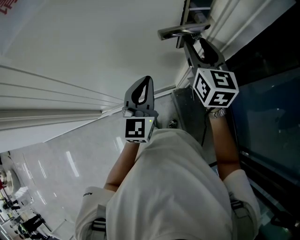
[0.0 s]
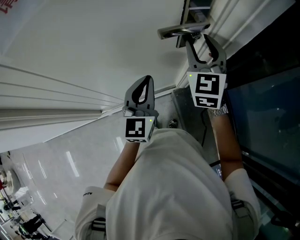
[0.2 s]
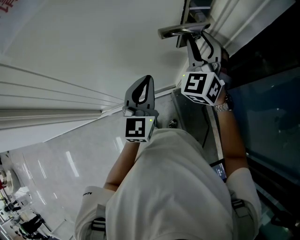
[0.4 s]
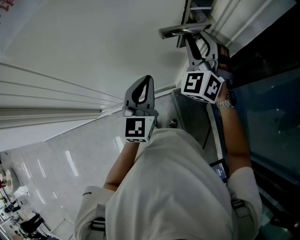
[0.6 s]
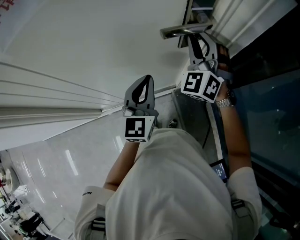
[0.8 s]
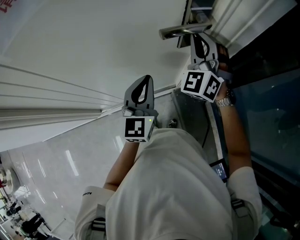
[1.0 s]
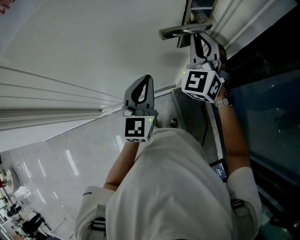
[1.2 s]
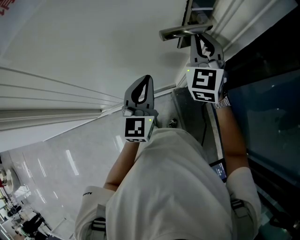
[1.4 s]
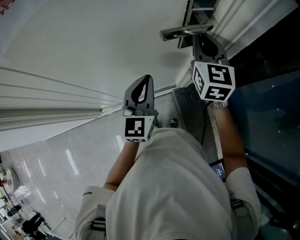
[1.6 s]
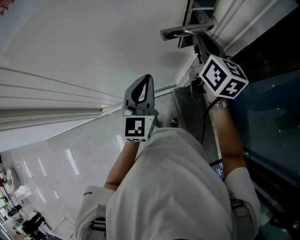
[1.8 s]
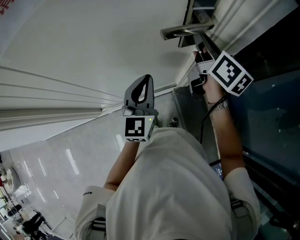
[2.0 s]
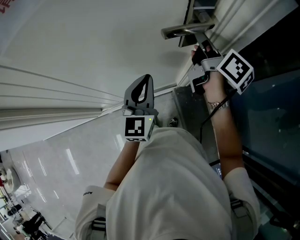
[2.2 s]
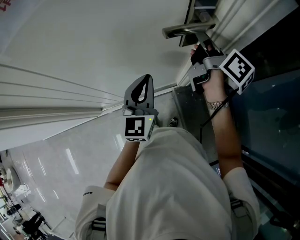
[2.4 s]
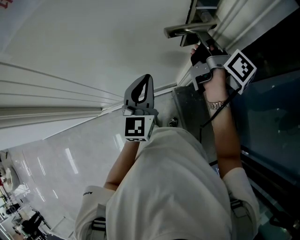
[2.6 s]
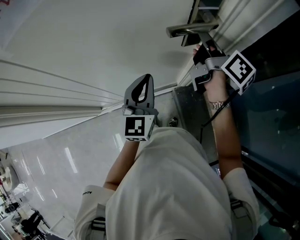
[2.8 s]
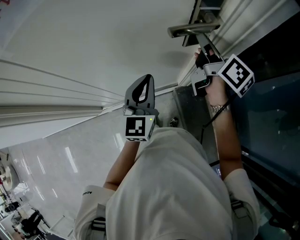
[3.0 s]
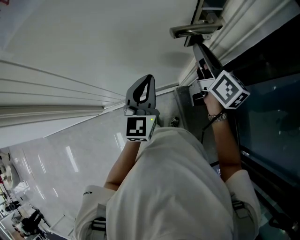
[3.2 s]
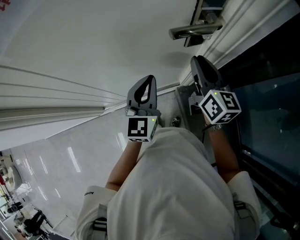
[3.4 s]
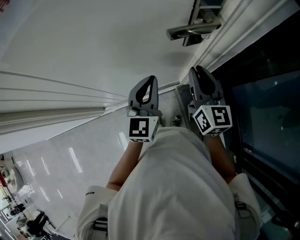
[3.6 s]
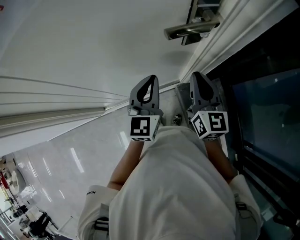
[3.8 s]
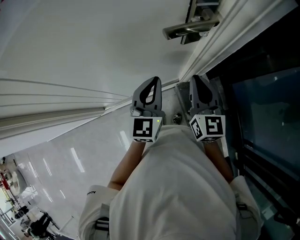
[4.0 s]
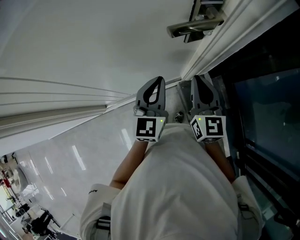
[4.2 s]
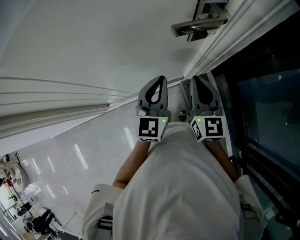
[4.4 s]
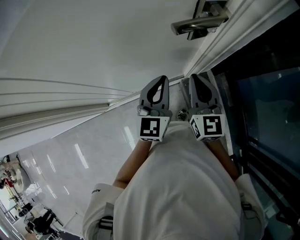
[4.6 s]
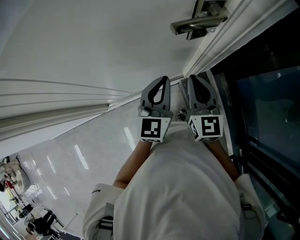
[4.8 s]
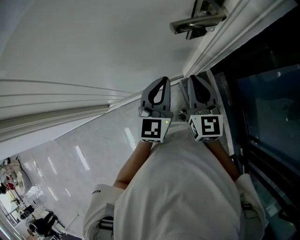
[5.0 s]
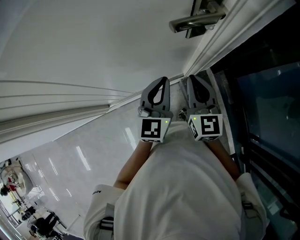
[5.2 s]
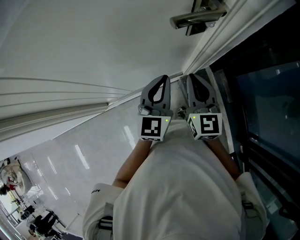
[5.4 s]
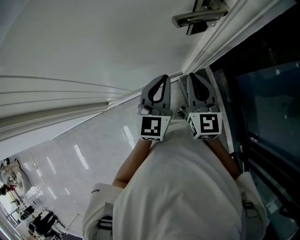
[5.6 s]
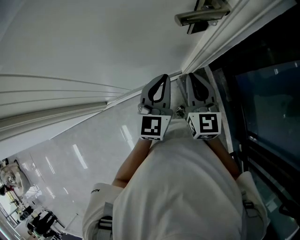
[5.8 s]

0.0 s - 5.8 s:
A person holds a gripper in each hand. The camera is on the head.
0.0 s - 1.4 s: The right gripper swivels approximately 30 degrees, and closes its fingers.
1.4 s - 2.8 s: The right gripper rotates around the line of its fingers by roughly 90 degrees, clockwise from behind.
2.8 s - 4.4 s: The right gripper travels backward and downward by some 15 cm, and rotates around the line of its fingers by roughly 50 degrees, counterclockwise from behind.
4.4 s - 5.8 s: There are only small adjustments of the grippers.

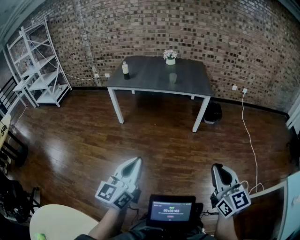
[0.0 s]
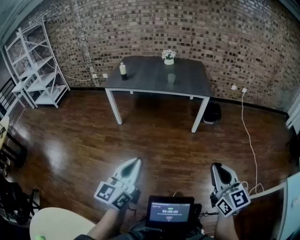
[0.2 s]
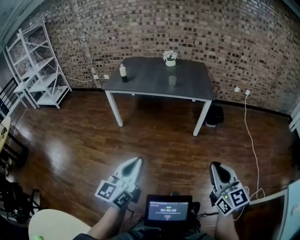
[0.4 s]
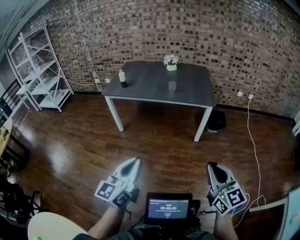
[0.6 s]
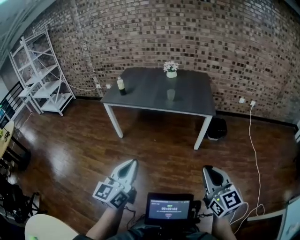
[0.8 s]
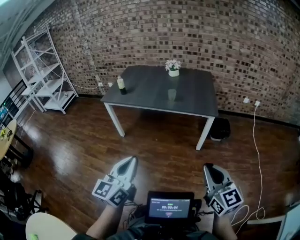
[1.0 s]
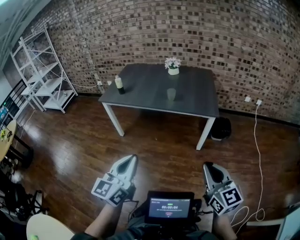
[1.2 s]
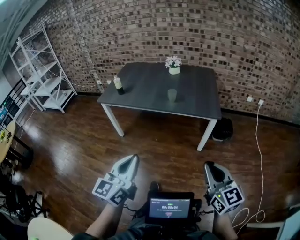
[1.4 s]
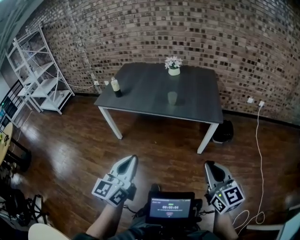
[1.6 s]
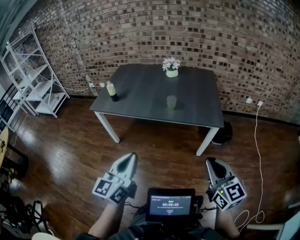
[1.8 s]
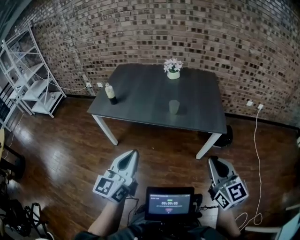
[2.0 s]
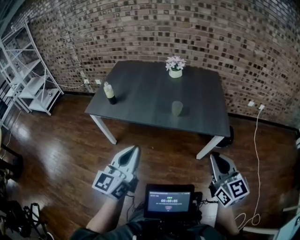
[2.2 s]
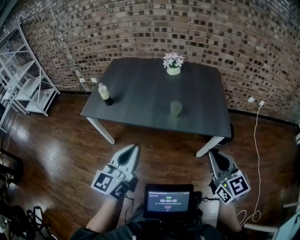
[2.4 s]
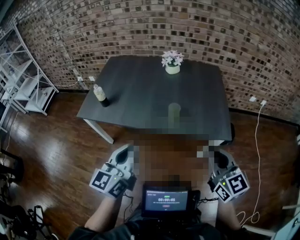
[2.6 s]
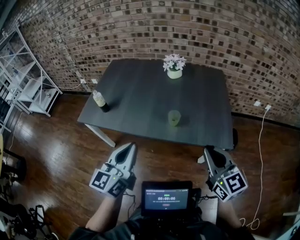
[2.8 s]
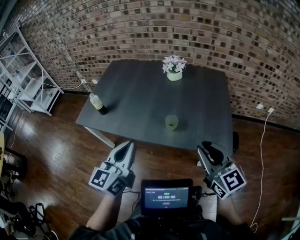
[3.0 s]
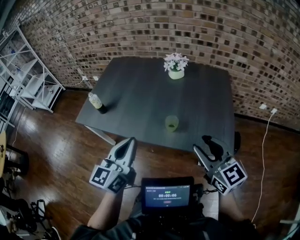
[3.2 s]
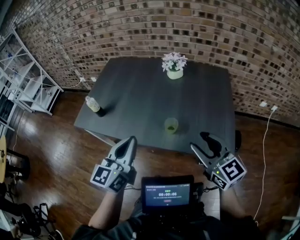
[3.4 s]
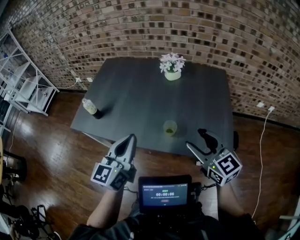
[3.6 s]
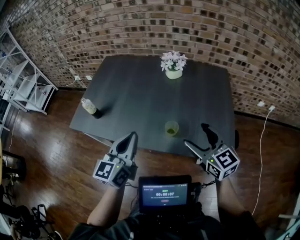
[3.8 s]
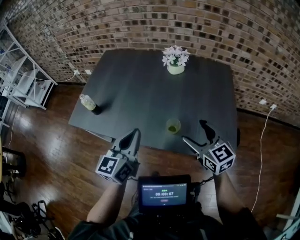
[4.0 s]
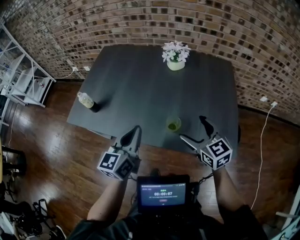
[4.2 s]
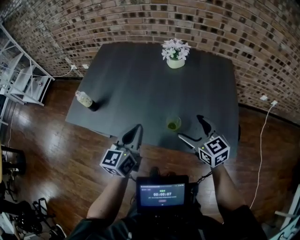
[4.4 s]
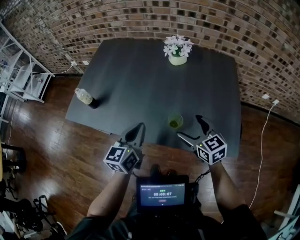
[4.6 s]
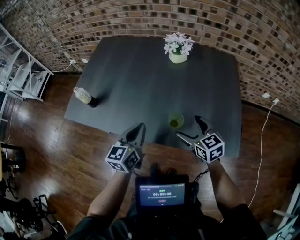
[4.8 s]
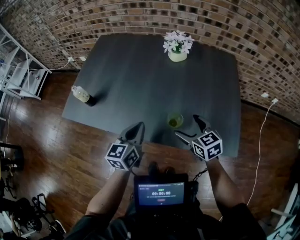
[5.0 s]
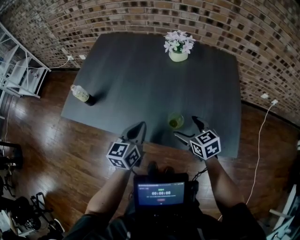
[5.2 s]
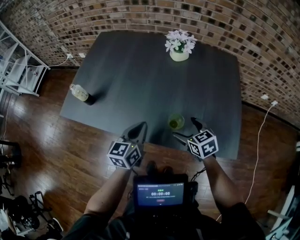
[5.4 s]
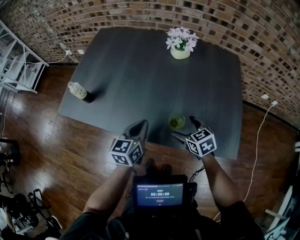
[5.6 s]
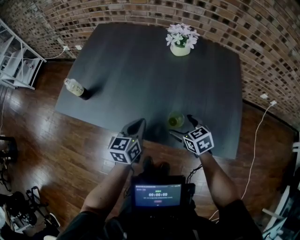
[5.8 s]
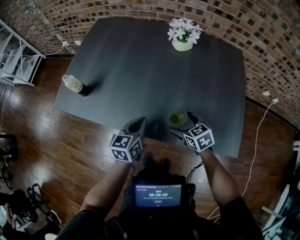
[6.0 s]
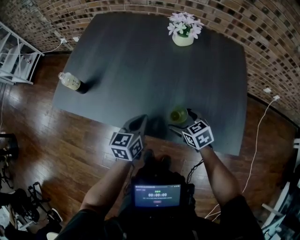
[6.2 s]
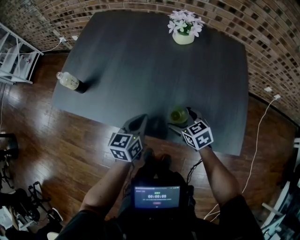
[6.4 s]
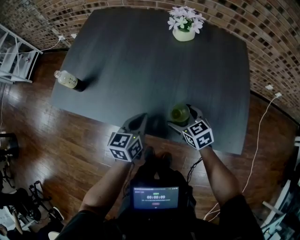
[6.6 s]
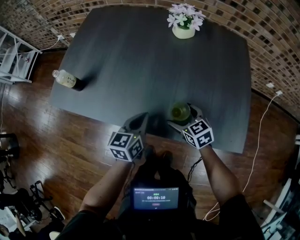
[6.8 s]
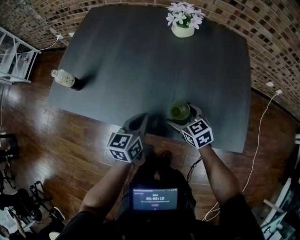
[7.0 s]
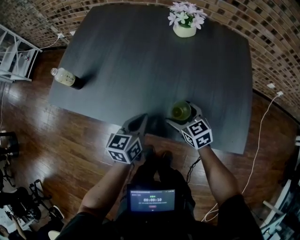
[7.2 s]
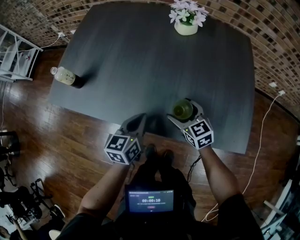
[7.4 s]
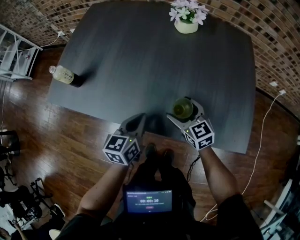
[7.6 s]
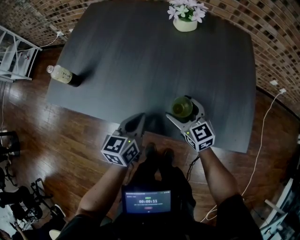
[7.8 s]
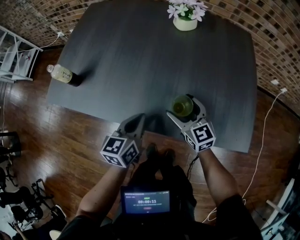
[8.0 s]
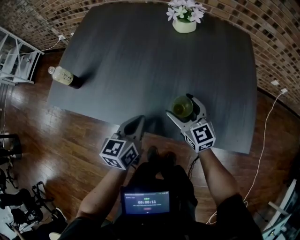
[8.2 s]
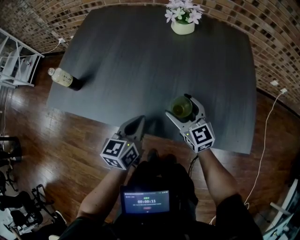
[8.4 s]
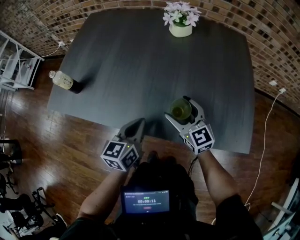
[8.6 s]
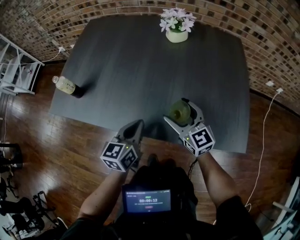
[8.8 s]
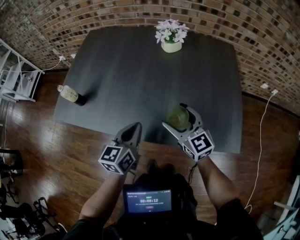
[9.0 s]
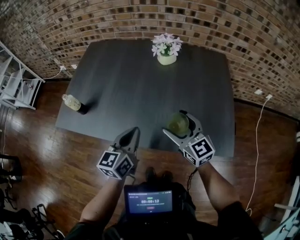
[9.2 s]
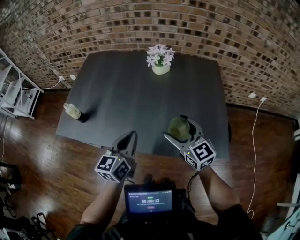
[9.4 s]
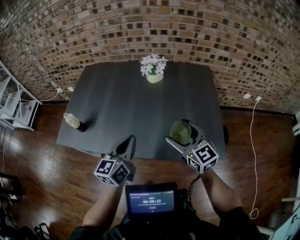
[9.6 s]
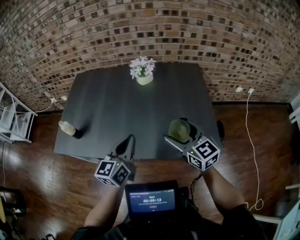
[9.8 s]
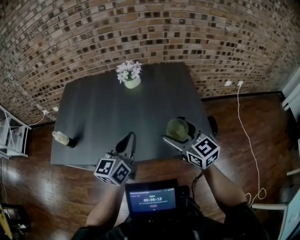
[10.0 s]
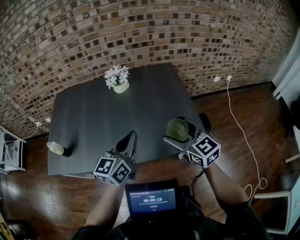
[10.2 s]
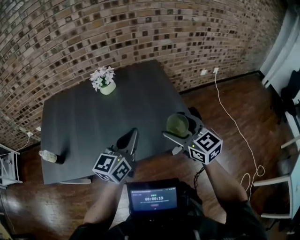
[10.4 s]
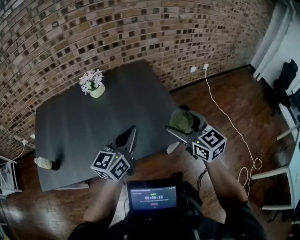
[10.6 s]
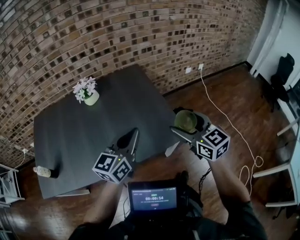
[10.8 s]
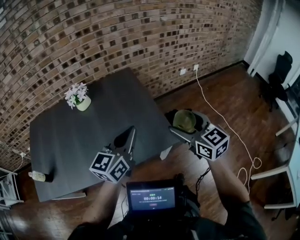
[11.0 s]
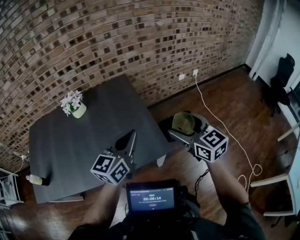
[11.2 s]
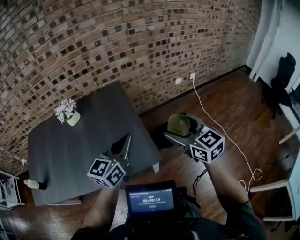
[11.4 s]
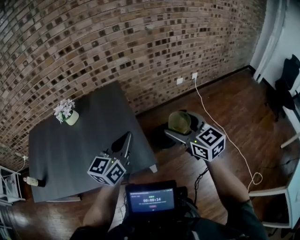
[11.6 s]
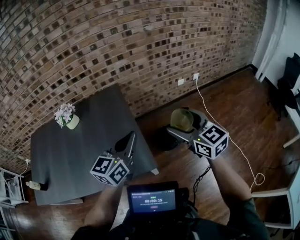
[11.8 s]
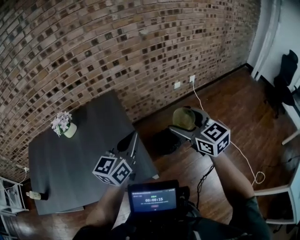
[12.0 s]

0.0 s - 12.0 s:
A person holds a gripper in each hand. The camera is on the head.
0.0 s - 1.6 s: Both grippers travel together forward, some 40 cm.
1.6 s - 3.0 s: Both grippers move forward, some 40 cm.
3.0 s - 4.4 s: The grippers both shift forward and downward by some 20 cm. The right gripper opens.
4.4 s - 6.0 s: The two grippers go some 15 cm downward. The right gripper turns by roughly 30 degrees.
6.0 s - 7.6 s: The right gripper changes its angle by some 20 degrees.
7.6 s - 9.0 s: The right gripper travels upward by approximately 10 cm; the left gripper heads upward, covering approximately 5 cm.
9.0 s - 10.4 s: The right gripper moves some 25 cm, and changes its angle by some 20 degrees. The left gripper heads upward, covering roughly 20 cm, and swivels approximately 40 degrees.
10.4 s - 12.0 s: The two grippers go some 40 cm to the right and forward.

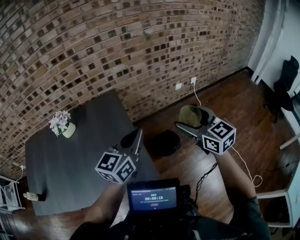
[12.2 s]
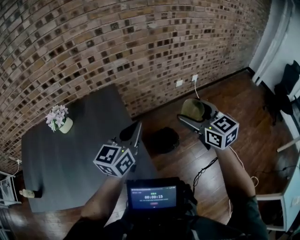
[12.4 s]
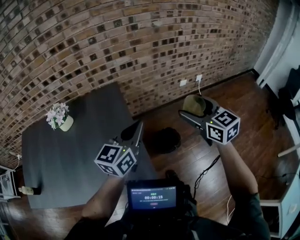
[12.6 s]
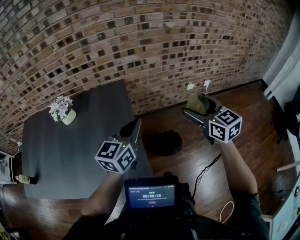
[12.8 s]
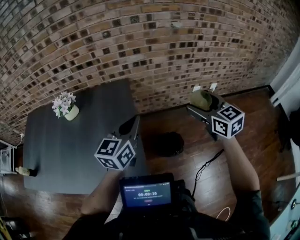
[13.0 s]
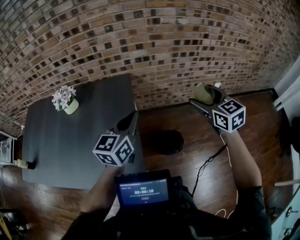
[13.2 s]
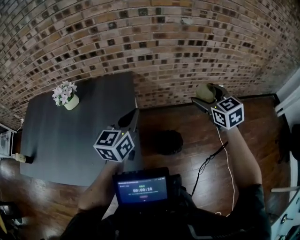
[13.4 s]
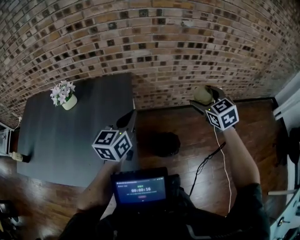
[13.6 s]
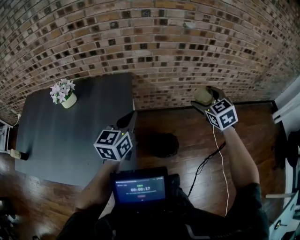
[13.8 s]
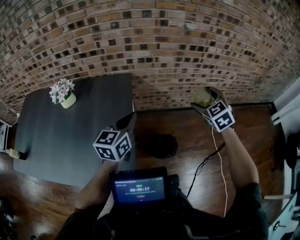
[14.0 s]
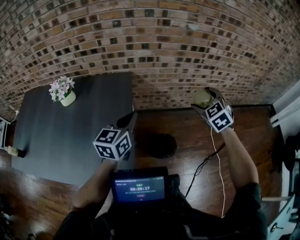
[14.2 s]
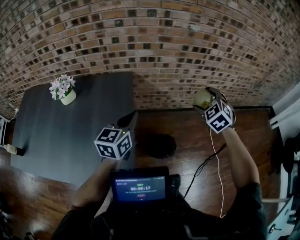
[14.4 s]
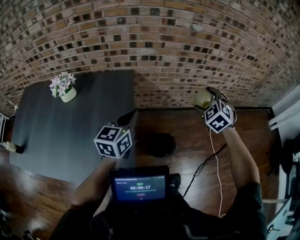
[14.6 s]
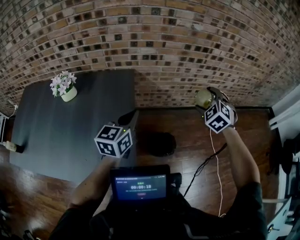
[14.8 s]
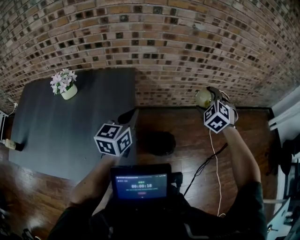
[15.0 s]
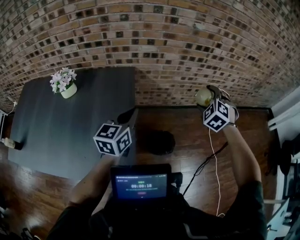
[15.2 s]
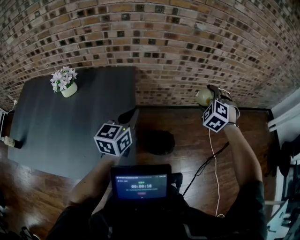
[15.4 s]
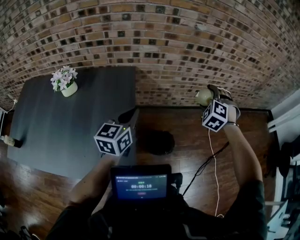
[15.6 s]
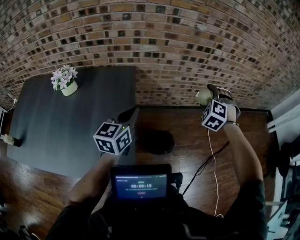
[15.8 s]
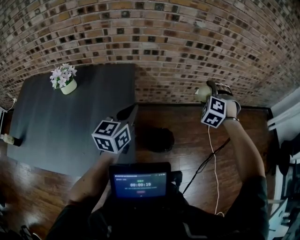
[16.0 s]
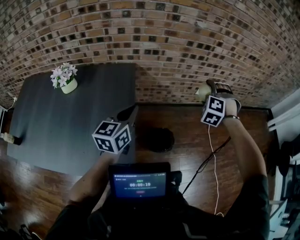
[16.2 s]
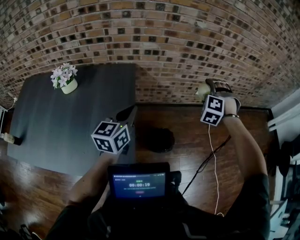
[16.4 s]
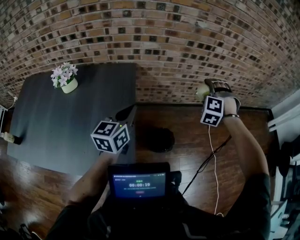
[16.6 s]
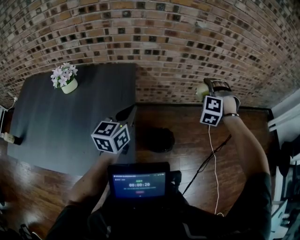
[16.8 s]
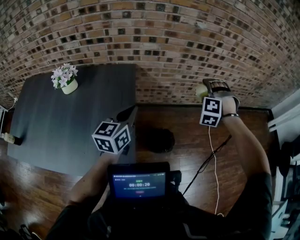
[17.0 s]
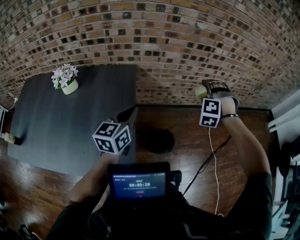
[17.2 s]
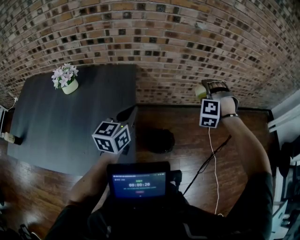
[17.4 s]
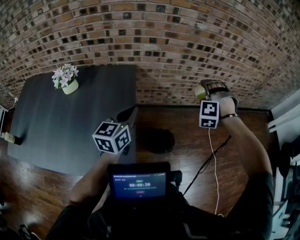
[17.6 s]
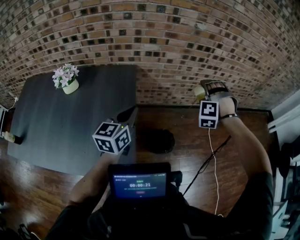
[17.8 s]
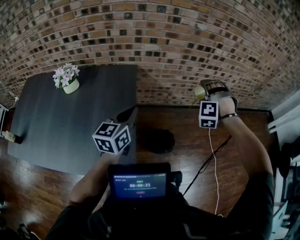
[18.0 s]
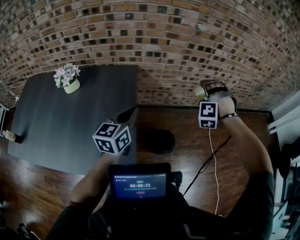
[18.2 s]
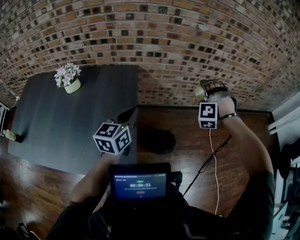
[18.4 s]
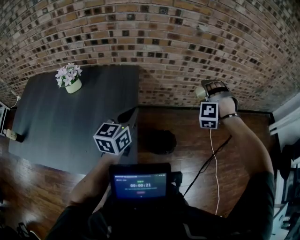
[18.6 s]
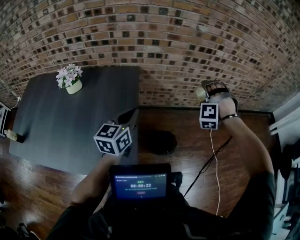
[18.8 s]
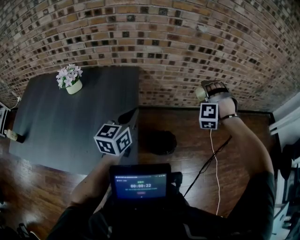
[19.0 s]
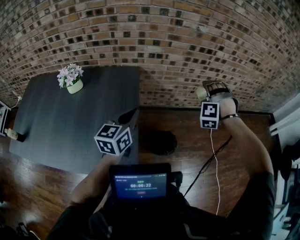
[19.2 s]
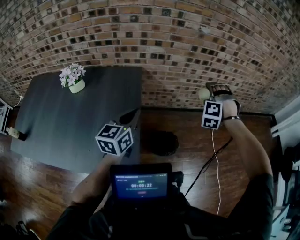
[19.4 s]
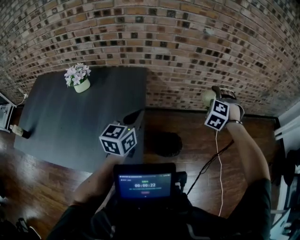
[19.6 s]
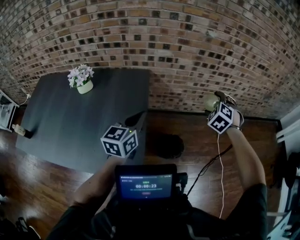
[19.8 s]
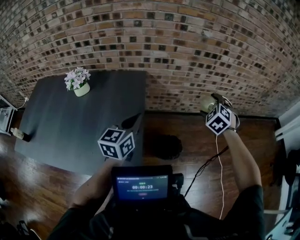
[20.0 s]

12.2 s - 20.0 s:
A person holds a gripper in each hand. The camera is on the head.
12.2 s - 13.8 s: The right gripper heads forward, covering some 25 cm, and swivels some 30 degrees. Meanwhile the left gripper moves forward, some 15 cm, and turns by roughly 30 degrees.
13.8 s - 15.4 s: The right gripper turns by approximately 50 degrees.
15.4 s - 16.8 s: The right gripper swivels some 20 degrees.
16.8 s - 18.4 s: The grippers stay close to where they were, moving slightly.
18.4 s - 20.0 s: The right gripper rolls clockwise, seen from behind, by about 50 degrees.
